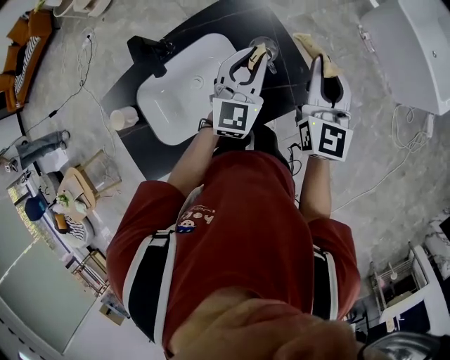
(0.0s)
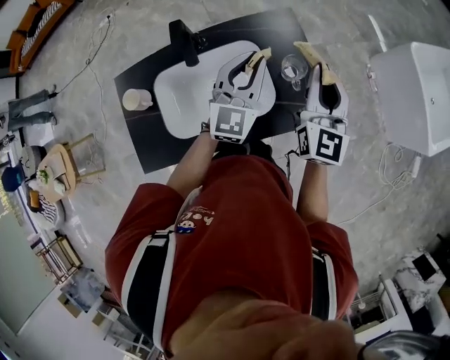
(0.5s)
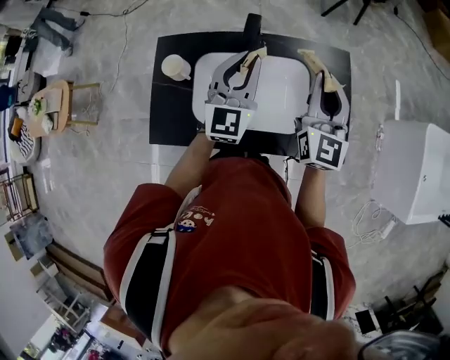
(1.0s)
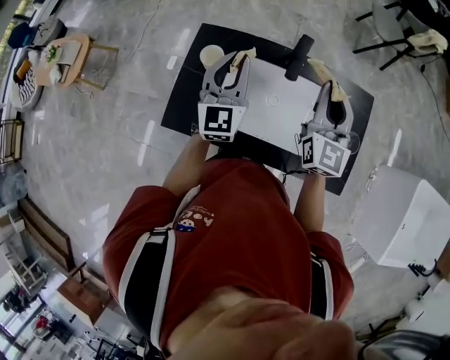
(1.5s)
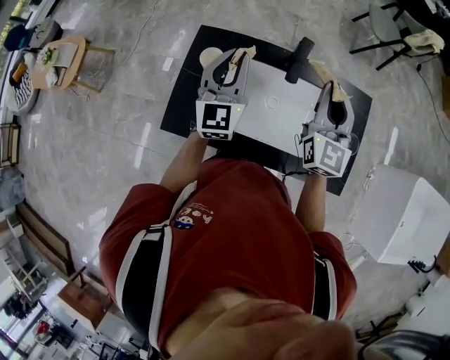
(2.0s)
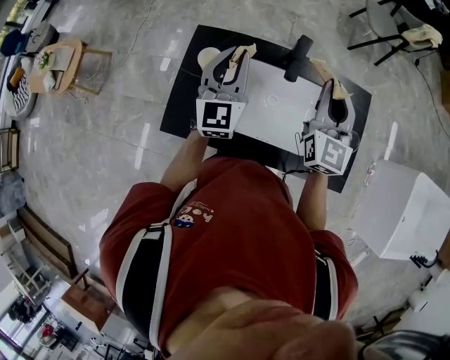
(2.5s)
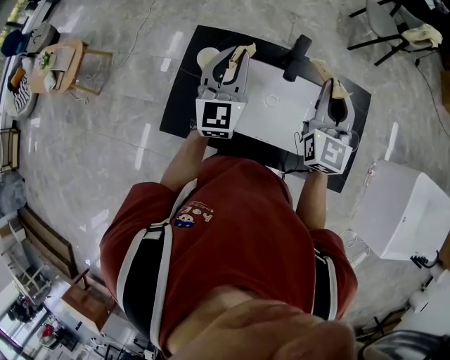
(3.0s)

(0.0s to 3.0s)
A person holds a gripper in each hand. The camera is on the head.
0.0s - 1.5s: The right gripper moves about 35 cm, and rotates about 40 degrees. The left gripper ends up some 40 cm from where it was, and changes its angle by approximately 50 degrees.
1.5s - 3.0s: The grippers stay close to where they were, moving slightly.

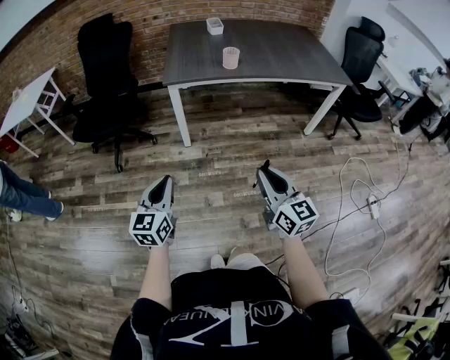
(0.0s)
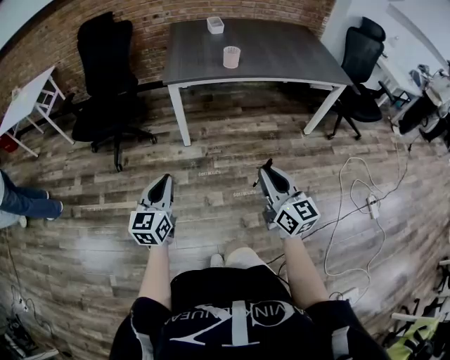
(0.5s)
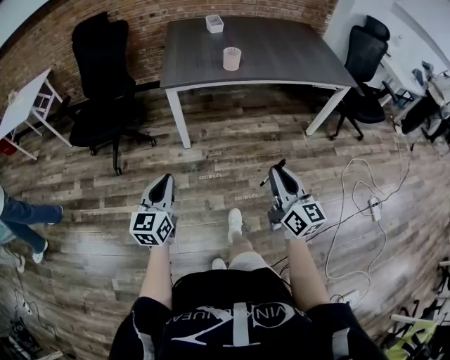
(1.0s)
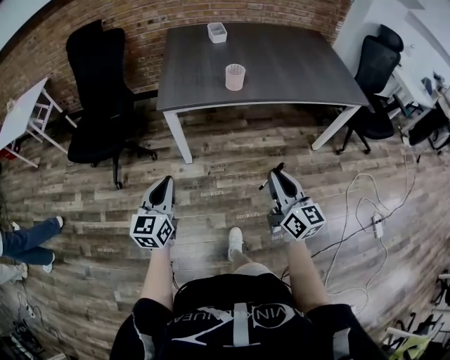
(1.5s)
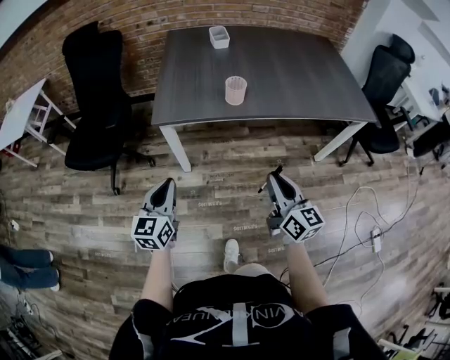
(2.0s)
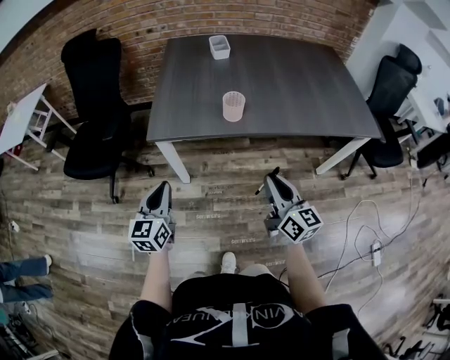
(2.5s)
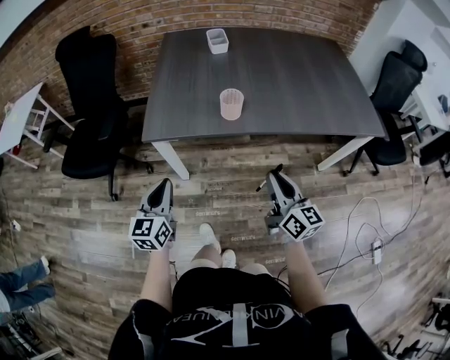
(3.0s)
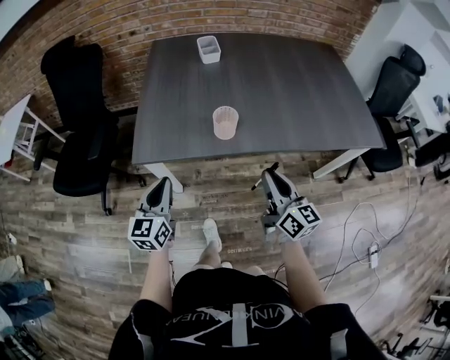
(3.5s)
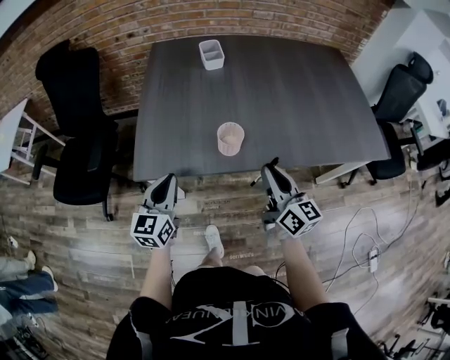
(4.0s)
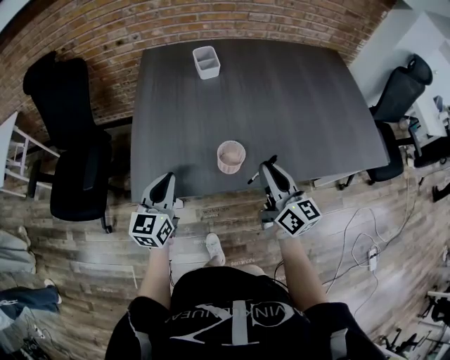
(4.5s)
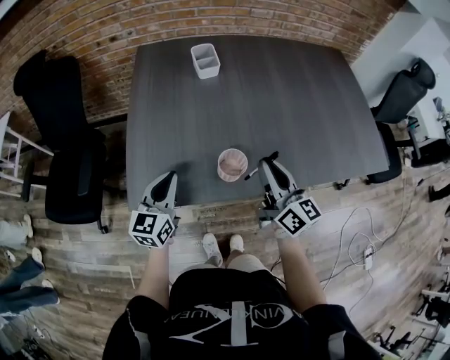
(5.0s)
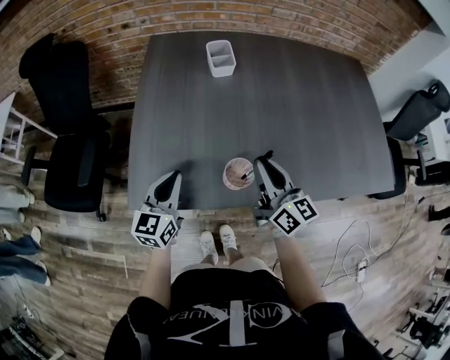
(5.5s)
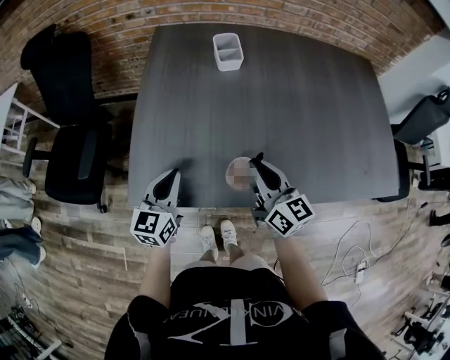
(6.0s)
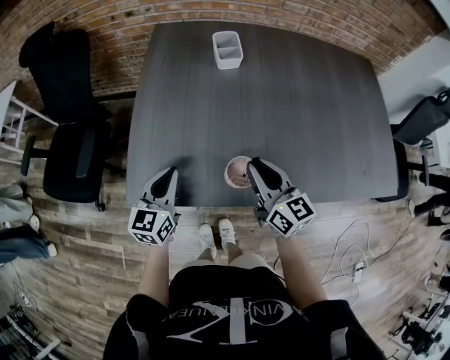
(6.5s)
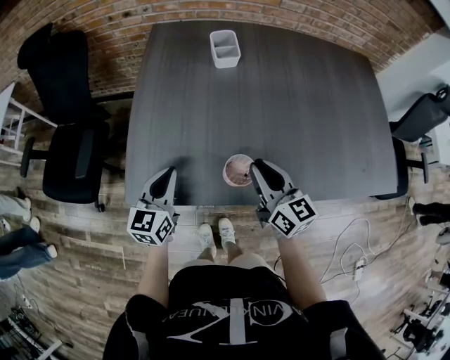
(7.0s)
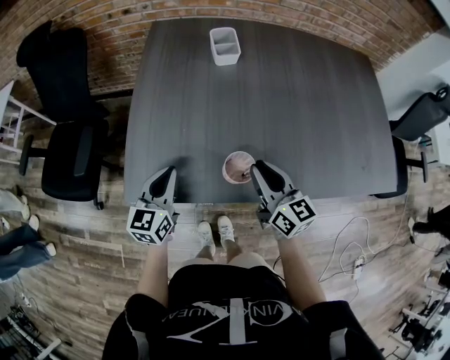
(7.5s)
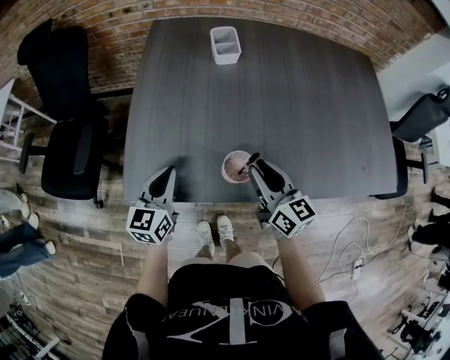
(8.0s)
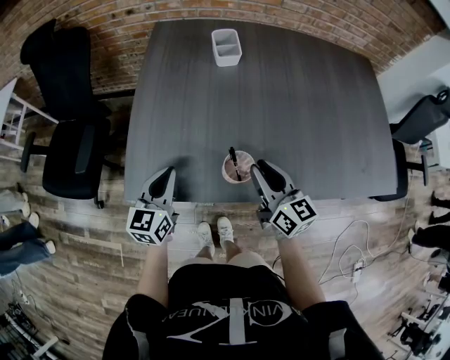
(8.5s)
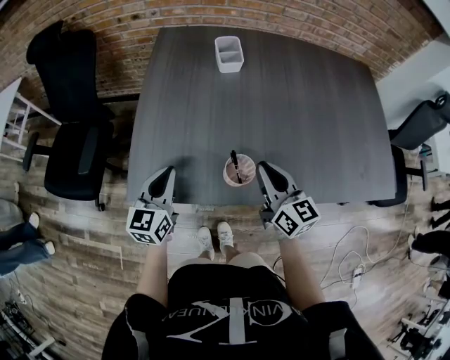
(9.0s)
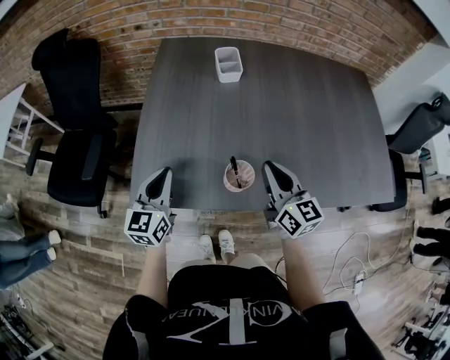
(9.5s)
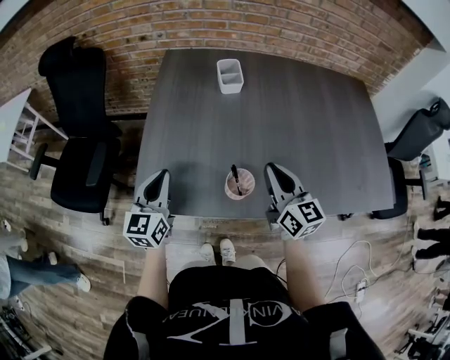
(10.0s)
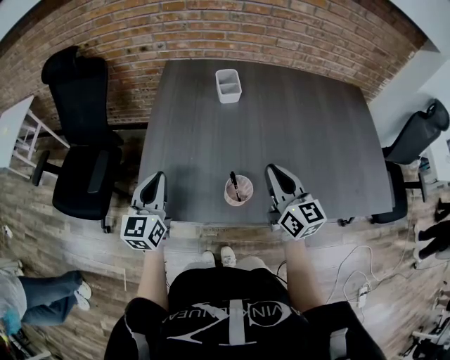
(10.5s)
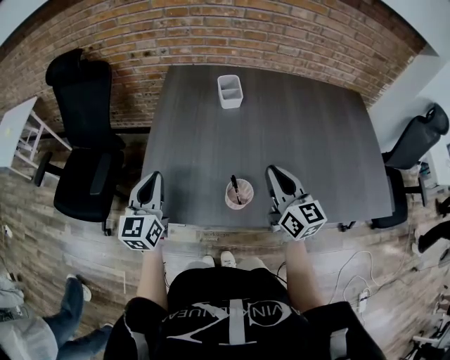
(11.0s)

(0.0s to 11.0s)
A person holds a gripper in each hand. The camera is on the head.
0.0s - 2.0s: Both grippers travel together forward, approximately 30 cm.
2.0s - 3.5s: The two grippers go about 20 cm forward.
3.5s - 5.5s: Both grippers travel together forward, roughly 25 cm.
5.5s - 7.5s: The right gripper goes some 5 cm downward.
7.5s - 9.0s: The grippers make only small movements.
9.0s - 11.0s: Both grippers travel together upward, roughly 10 cm.

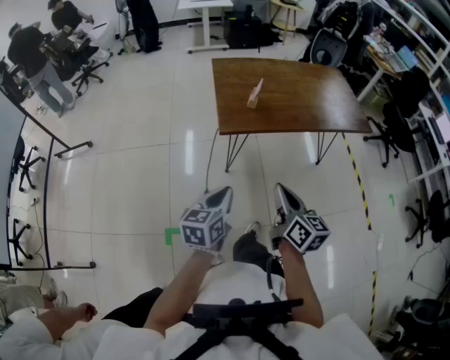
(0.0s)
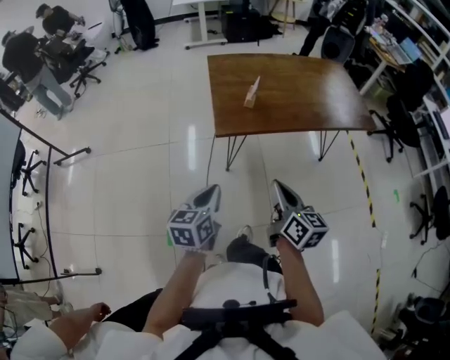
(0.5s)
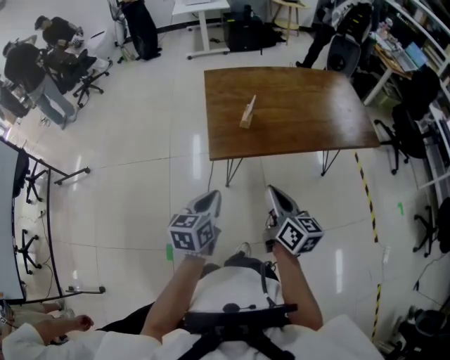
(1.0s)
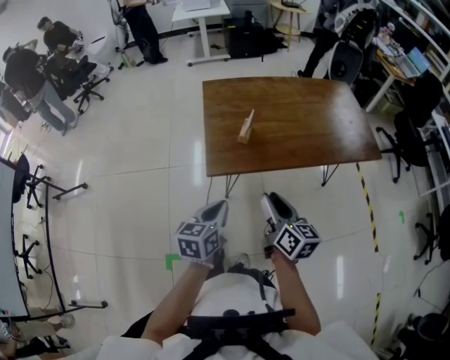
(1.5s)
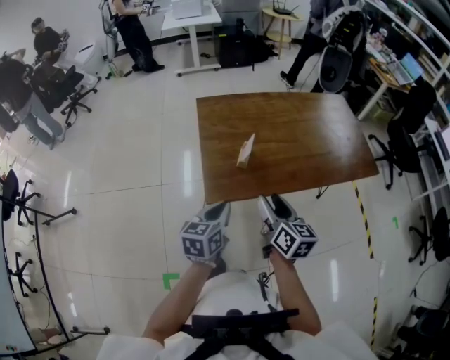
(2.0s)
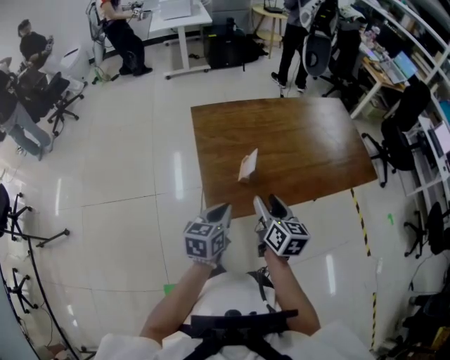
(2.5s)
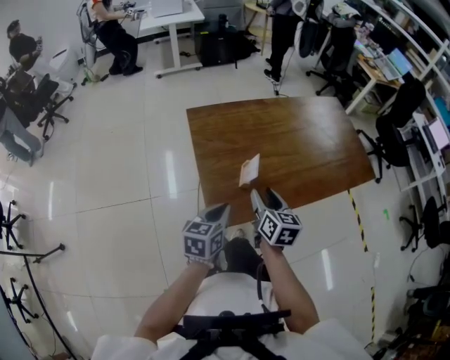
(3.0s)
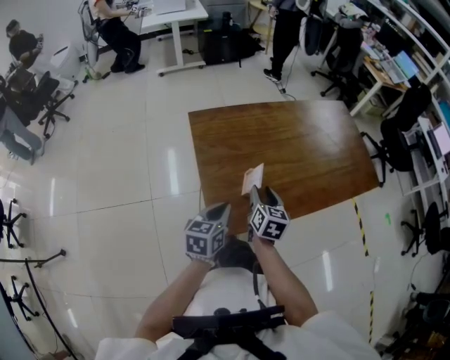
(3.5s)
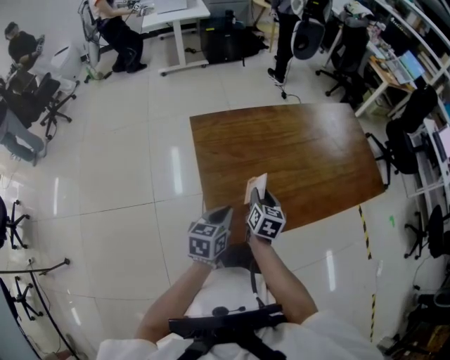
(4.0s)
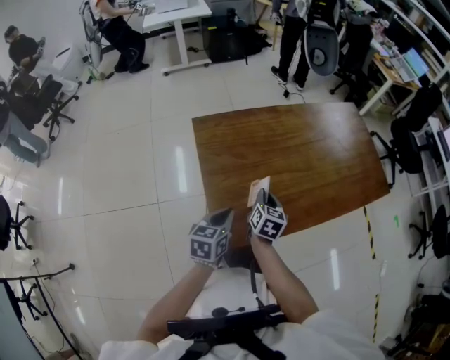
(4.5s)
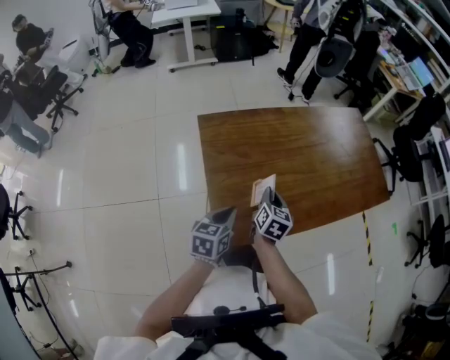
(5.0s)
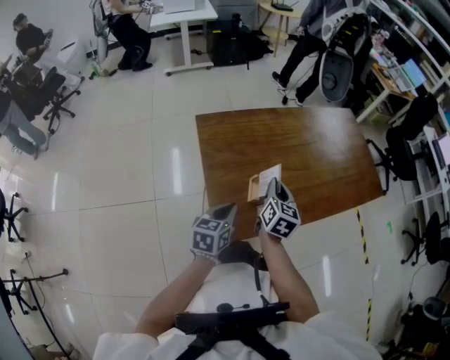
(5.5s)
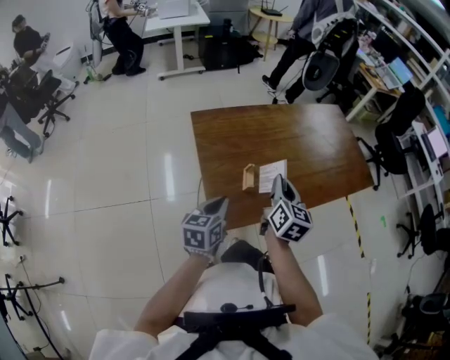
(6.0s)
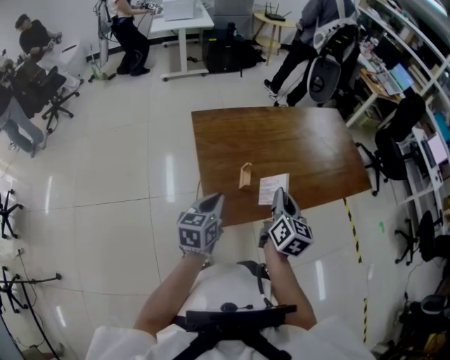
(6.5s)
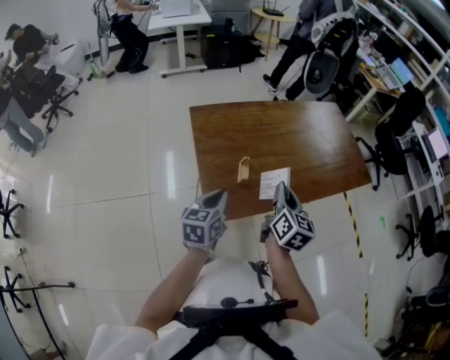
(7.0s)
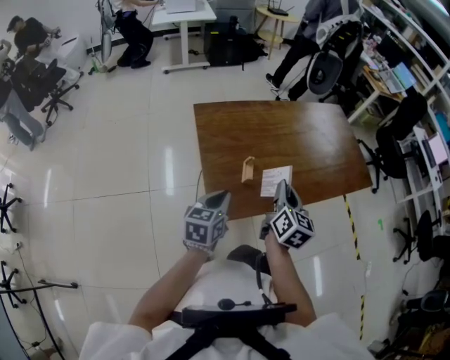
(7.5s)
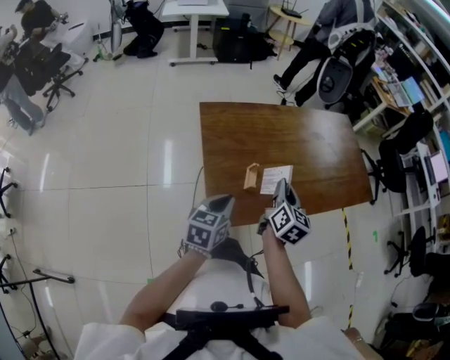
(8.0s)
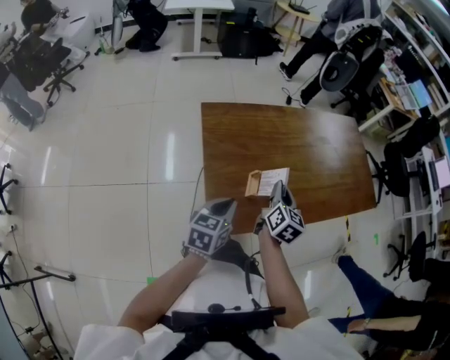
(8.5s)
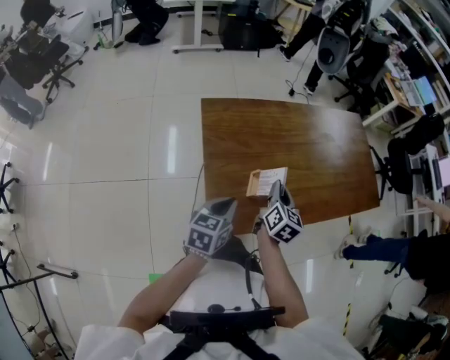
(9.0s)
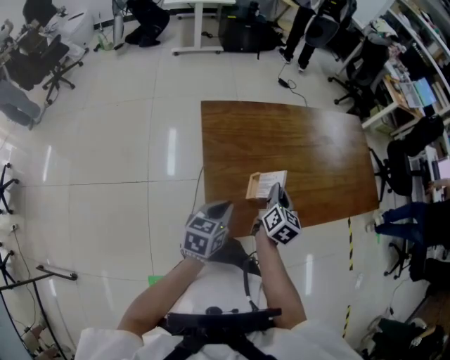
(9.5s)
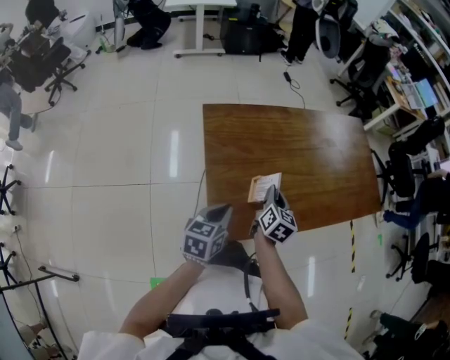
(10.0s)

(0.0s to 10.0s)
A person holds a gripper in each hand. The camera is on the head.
0.0s - 2.0s: The grippers both shift forward by approximately 30 cm. The right gripper opens up.
2.0s - 4.0s: The right gripper goes some 25 cm forward, downward and to the left, changes its angle by some 30 degrees, and closes up. Meanwhile the left gripper goes about 15 cm forward.
4.0s - 6.0s: The left gripper changes place by about 5 cm, while the right gripper goes some 15 cm upward, and closes.
8.0s - 10.0s: The right gripper heads downward, covering some 10 cm, while the left gripper changes place by approximately 5 cm.

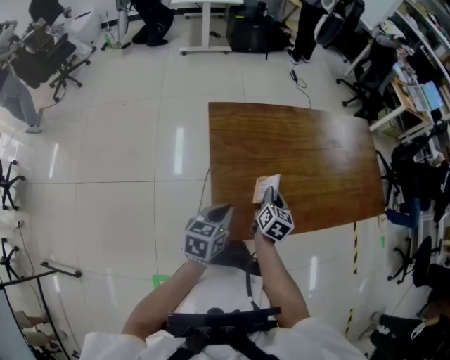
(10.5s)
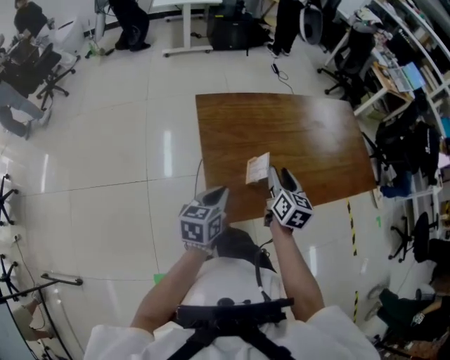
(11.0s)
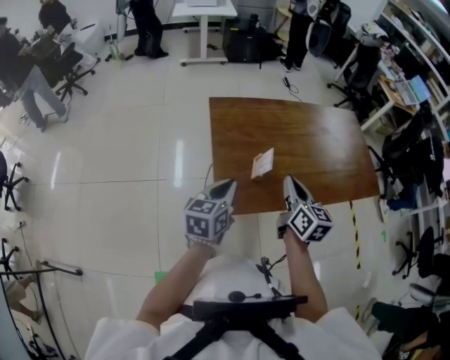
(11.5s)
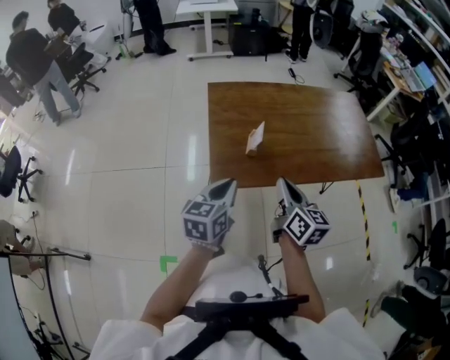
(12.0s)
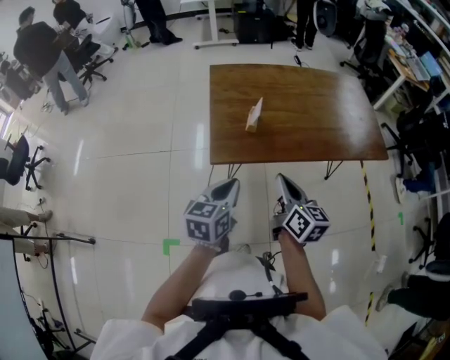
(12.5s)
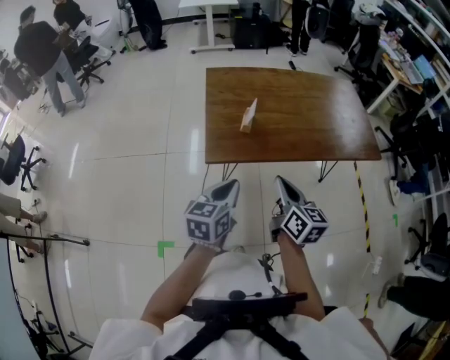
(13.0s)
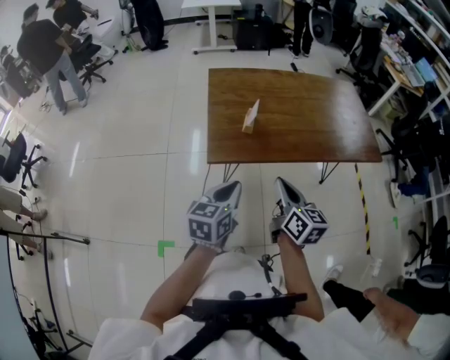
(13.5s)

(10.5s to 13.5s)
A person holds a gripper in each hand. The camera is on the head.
10.5s - 12.0s: The right gripper heads backward and upward, covering approximately 25 cm, rotates roughly 30 degrees, and opens, then closes once more, while the left gripper travels backward, upward and to the right by about 20 cm.
12.0s - 13.5s: The right gripper travels backward by approximately 10 cm. Meanwhile the left gripper is displaced backward and to the right by roughly 10 cm.
